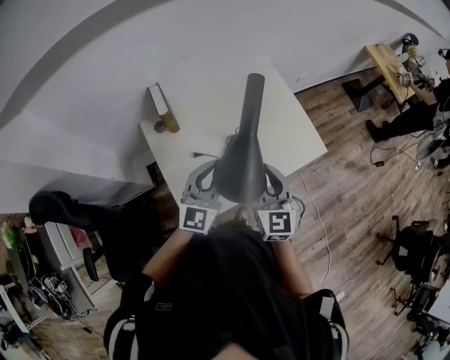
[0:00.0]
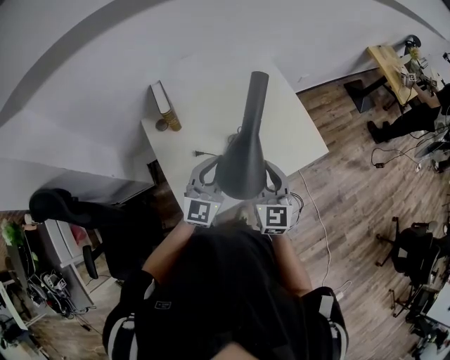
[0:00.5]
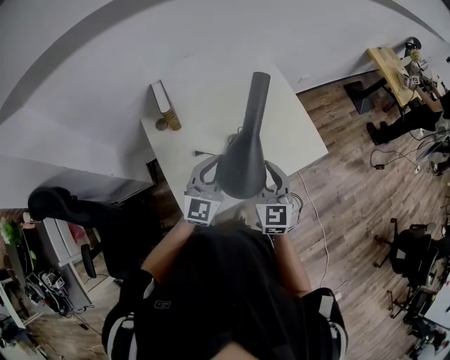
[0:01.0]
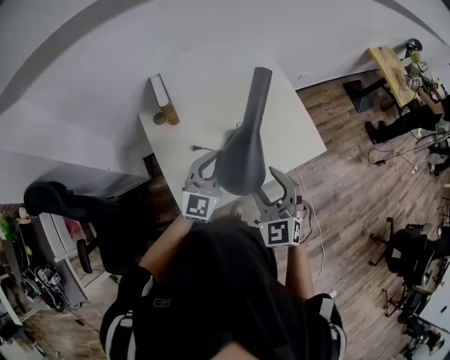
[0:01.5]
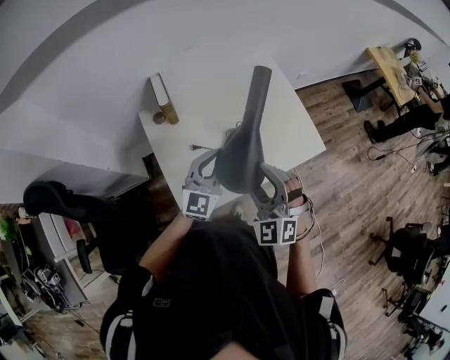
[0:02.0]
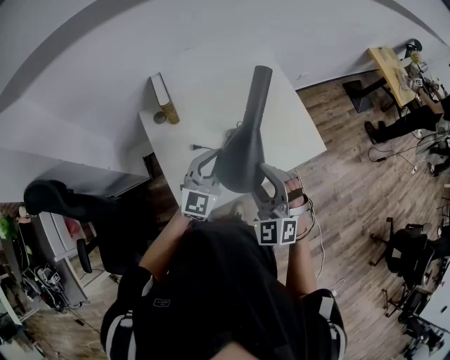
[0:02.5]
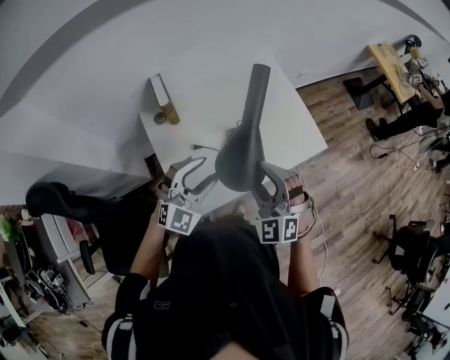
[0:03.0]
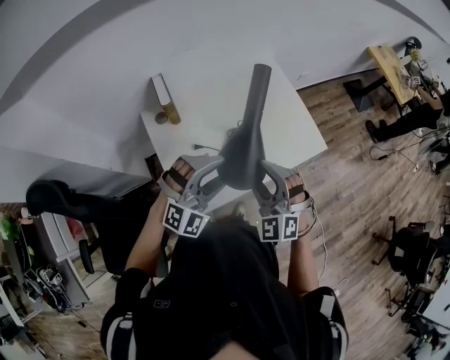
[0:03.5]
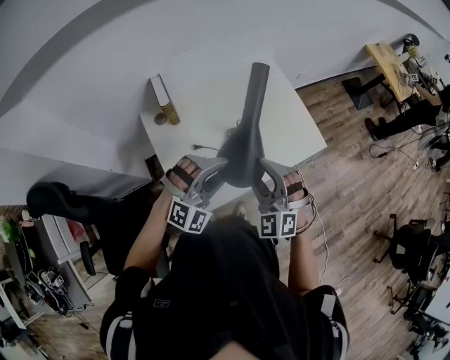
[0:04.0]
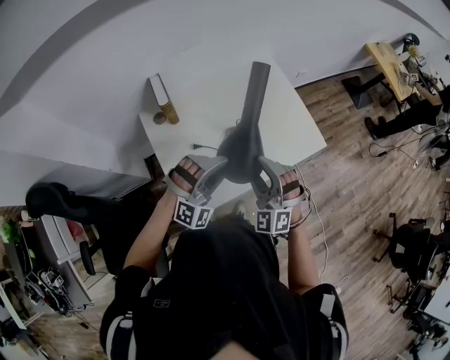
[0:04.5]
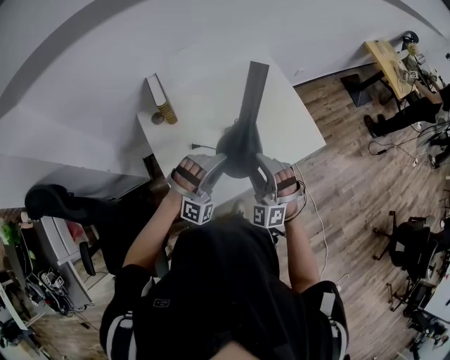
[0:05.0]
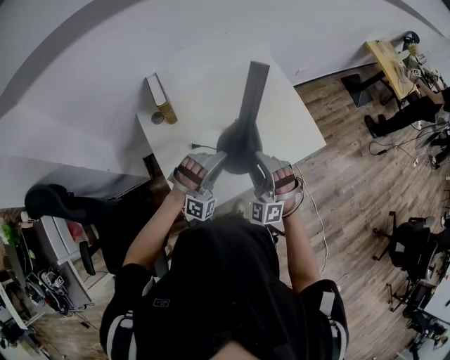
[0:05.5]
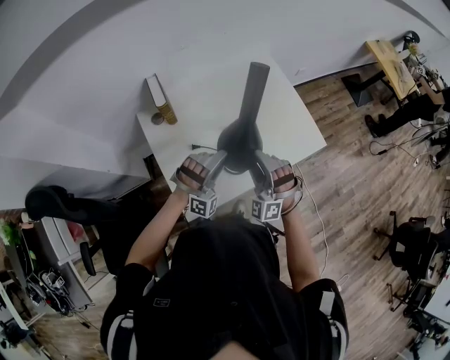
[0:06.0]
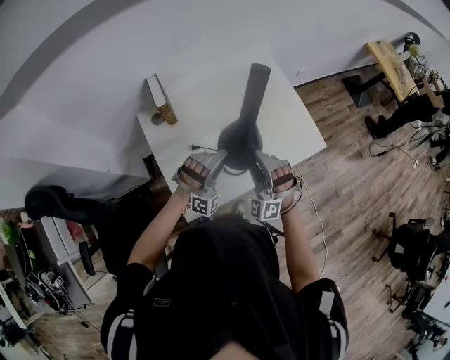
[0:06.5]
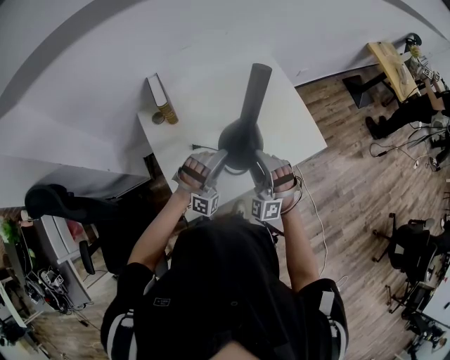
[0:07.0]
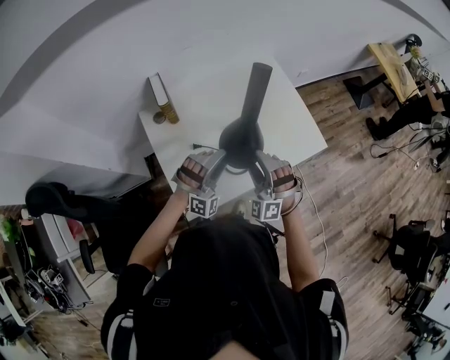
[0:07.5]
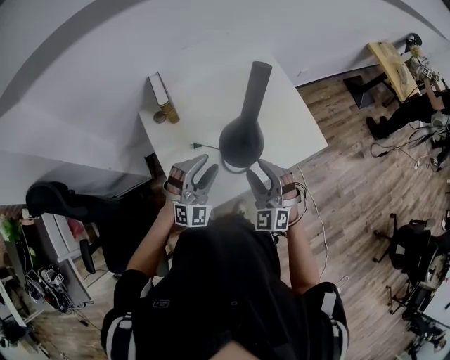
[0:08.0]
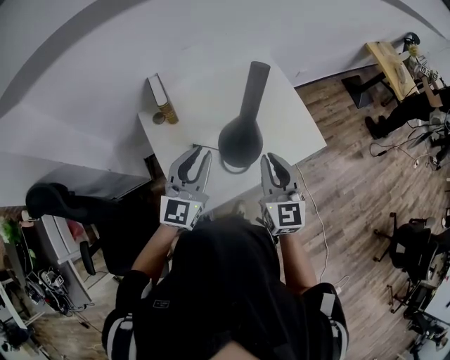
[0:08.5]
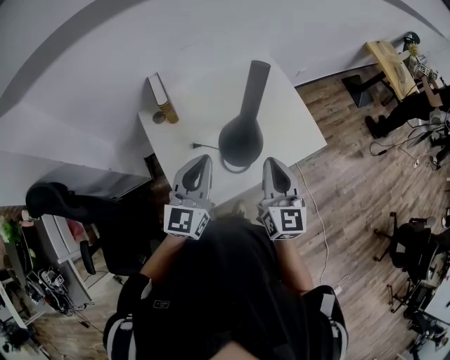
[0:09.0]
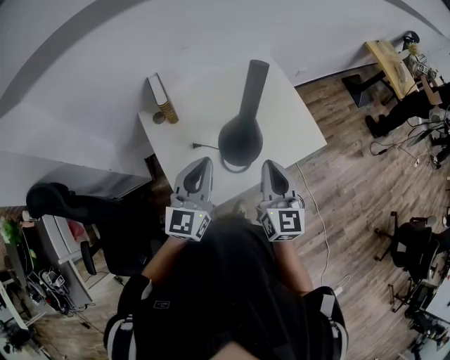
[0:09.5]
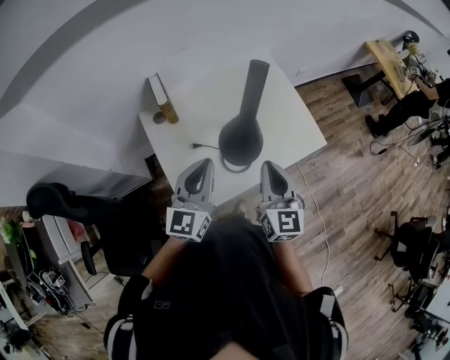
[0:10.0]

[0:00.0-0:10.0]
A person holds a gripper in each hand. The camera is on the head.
0:00.0 to 0:02.0: The right gripper moves approximately 5 cm, rotates around the line of its fingers by roughly 50 degrees, counterclockwise from behind, and opens up.
0:02.0 to 0:04.0: The left gripper heads backward, covering some 5 cm, twists about 60 degrees clockwise, seen from behind, and opens its fingers.
0:04.0 to 0:06.0: The left gripper shifts roughly 10 cm downward and forward, and rotates approximately 30 degrees. Meanwhile the right gripper is displaced downward by roughly 10 cm, and swivels about 20 degrees.
0:06.0 to 0:08.0: The right gripper rotates some 20 degrees; the left gripper moves approximately 5 cm, and rotates roughly 30 degrees.
0:08.0 to 0:10.0: Both grippers travel together upward, about 10 cm. The left gripper twists approximately 60 degrees counterclockwise, seen from behind, and closes. The right gripper rolls clockwise, seen from behind, by approximately 60 degrees, and closes up.

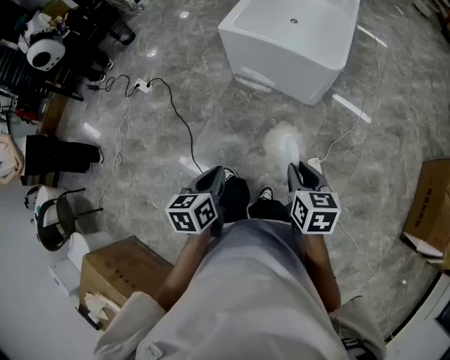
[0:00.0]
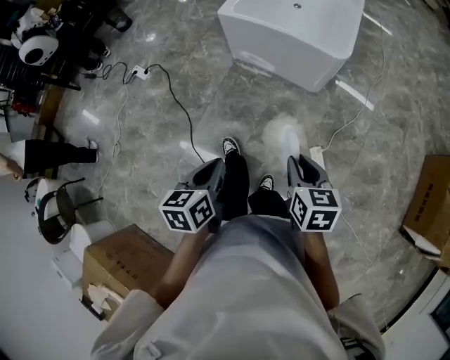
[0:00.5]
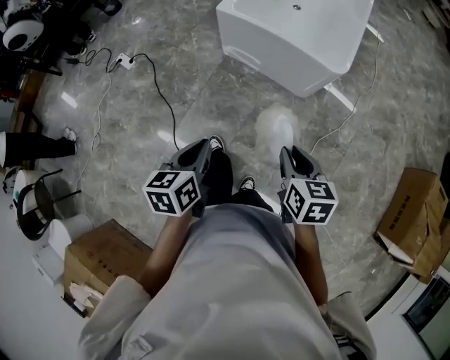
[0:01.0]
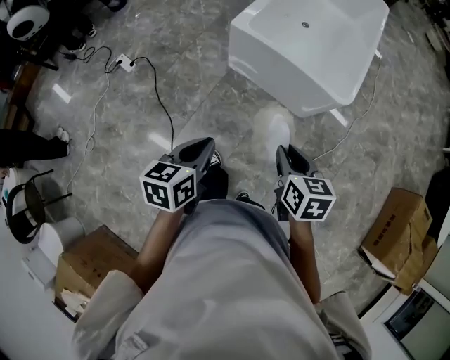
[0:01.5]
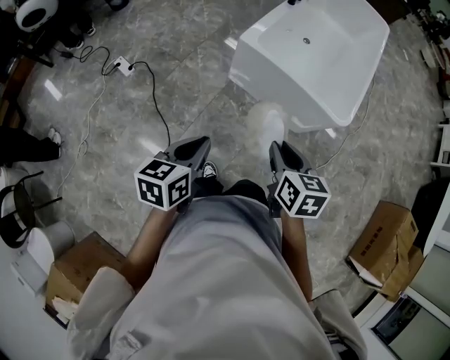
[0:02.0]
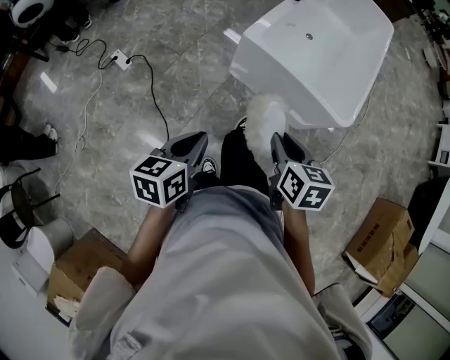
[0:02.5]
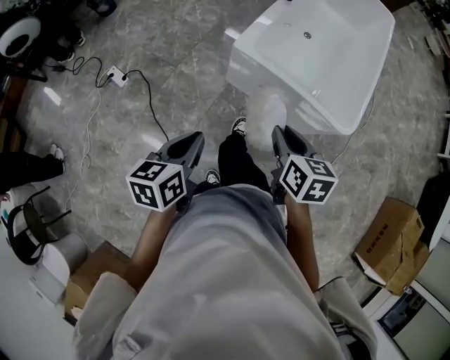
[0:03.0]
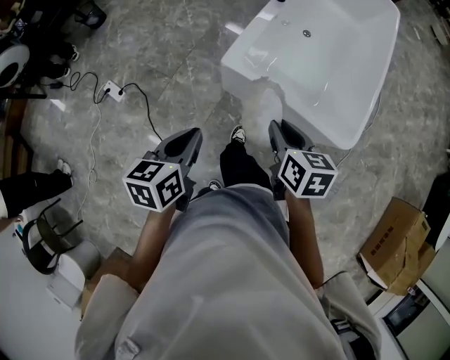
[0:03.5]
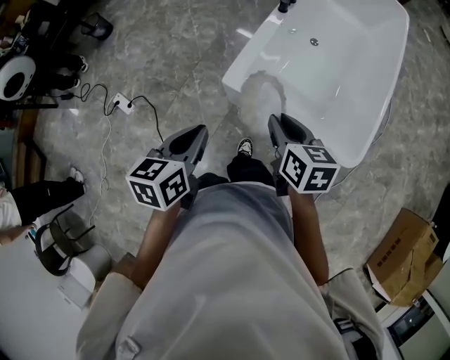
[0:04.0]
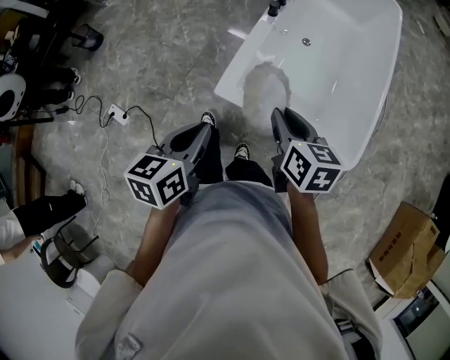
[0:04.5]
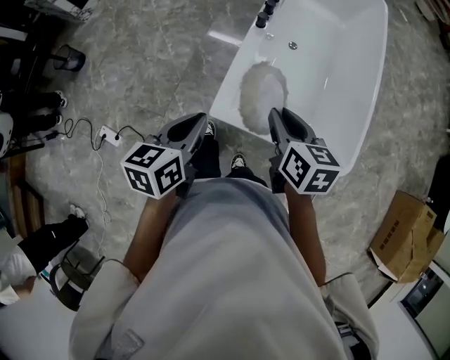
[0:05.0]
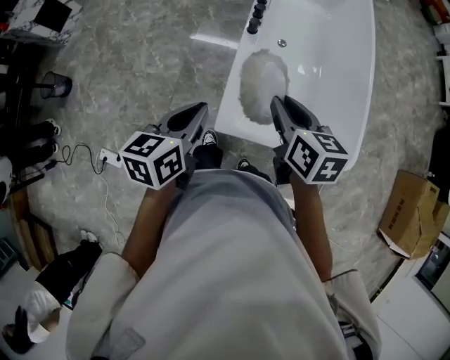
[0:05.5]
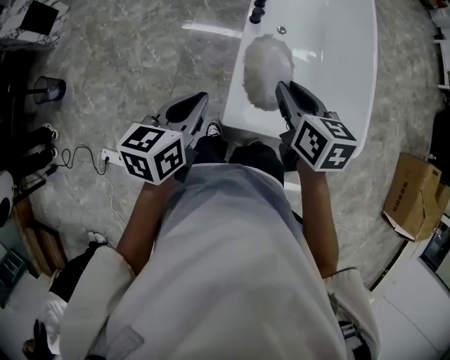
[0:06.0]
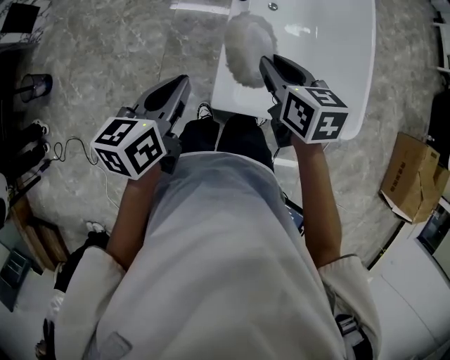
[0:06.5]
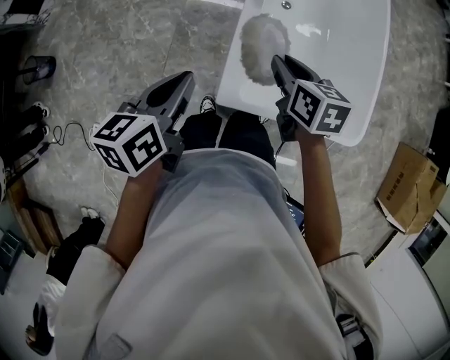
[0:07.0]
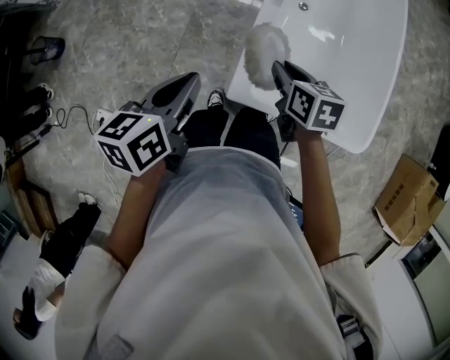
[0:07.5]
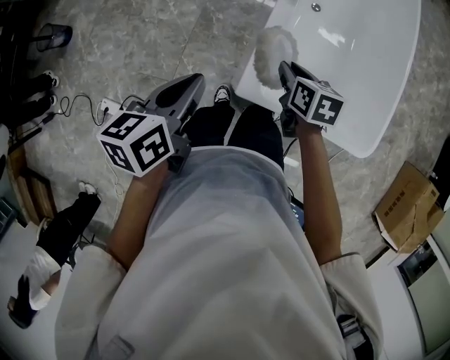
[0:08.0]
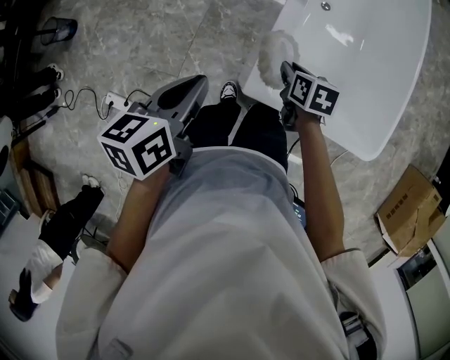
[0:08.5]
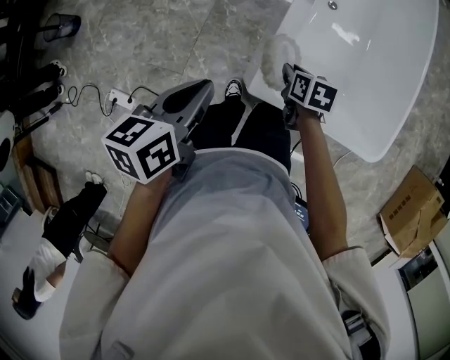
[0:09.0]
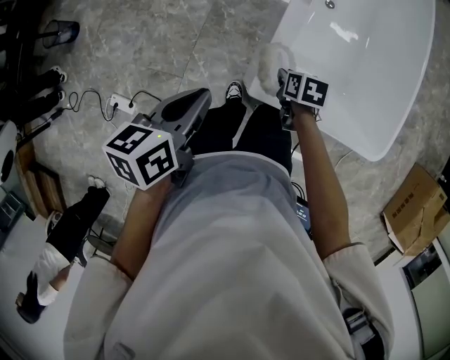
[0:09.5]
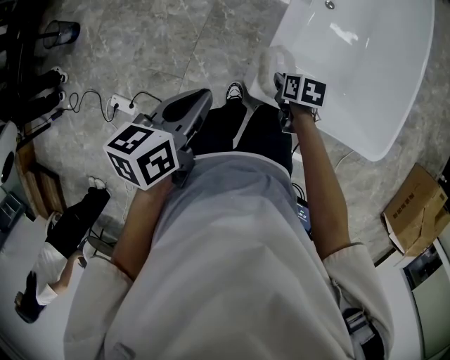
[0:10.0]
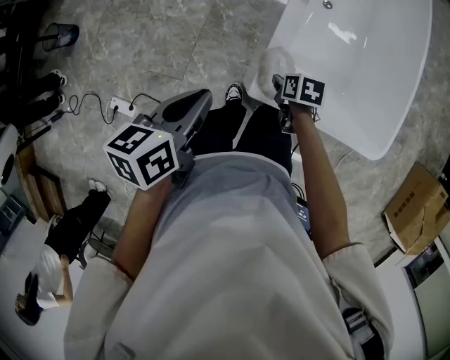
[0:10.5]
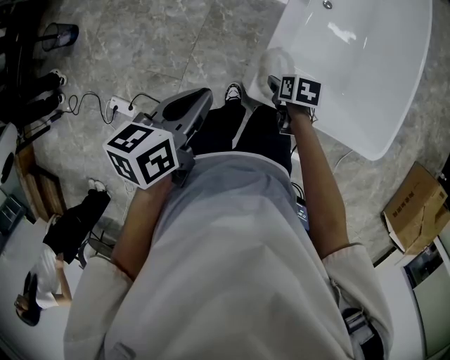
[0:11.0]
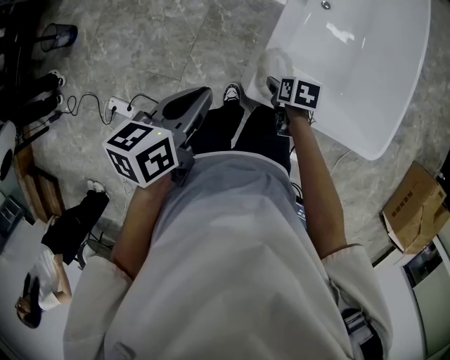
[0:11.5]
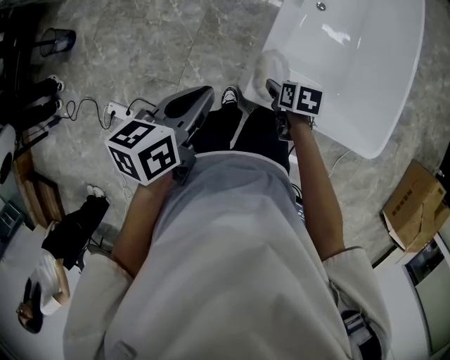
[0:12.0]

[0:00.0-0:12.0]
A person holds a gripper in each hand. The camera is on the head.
0:00.0 to 0:02.0: Both grippers move forward and to the left, some 35 cm.
0:02.0 to 0:04.0: The two grippers go some 40 cm forward.
0:04.0 to 0:06.0: The right gripper changes place by about 25 cm, and changes its angle by about 20 degrees, while the left gripper changes place by some 30 cm, and rotates approximately 30 degrees.
0:06.0 to 0:08.0: The right gripper moves downward, some 15 cm. The left gripper shifts by approximately 5 cm.
0:08.0 to 0:10.0: The right gripper goes approximately 10 cm downward.
0:10.0 to 0:12.0: The right gripper opens up.

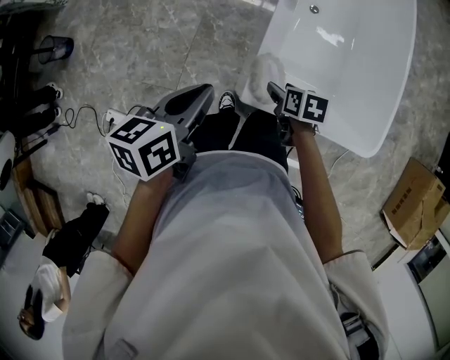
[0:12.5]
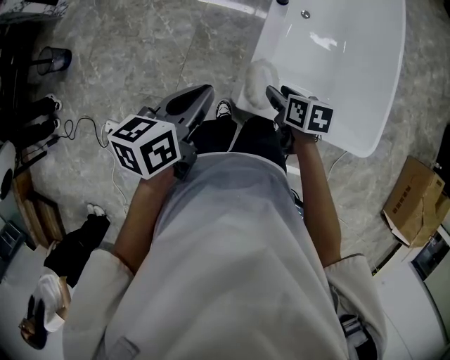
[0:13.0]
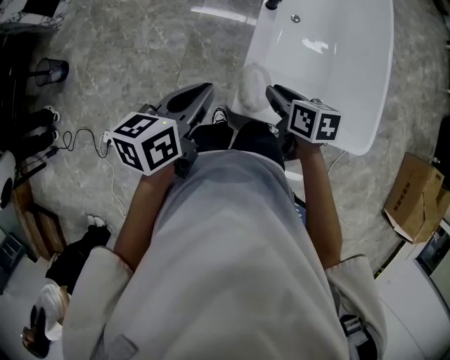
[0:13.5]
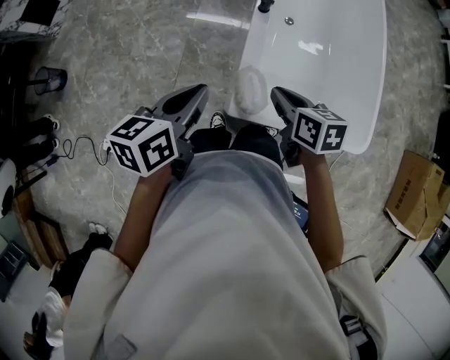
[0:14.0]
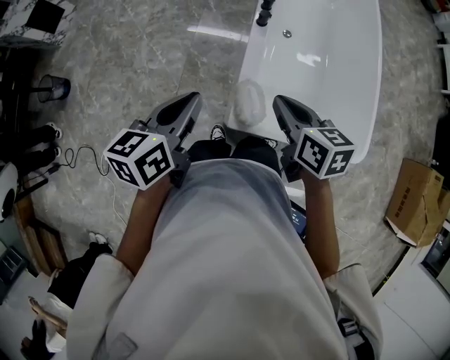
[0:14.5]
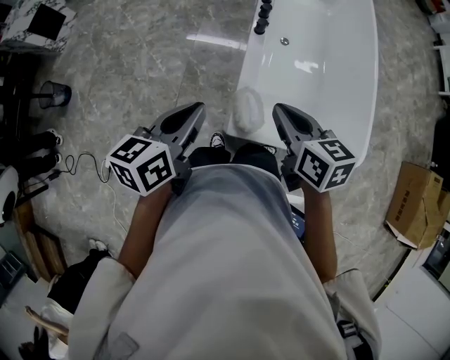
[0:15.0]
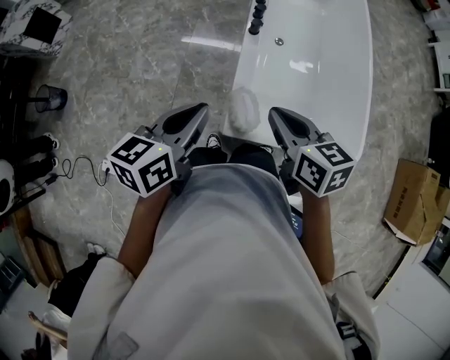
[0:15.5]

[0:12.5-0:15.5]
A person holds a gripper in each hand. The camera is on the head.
0:12.5 to 0:14.0: The right gripper goes some 15 cm upward, swivels some 20 degrees, and closes up.
0:14.0 to 0:15.5: The right gripper goes approximately 10 cm upward.

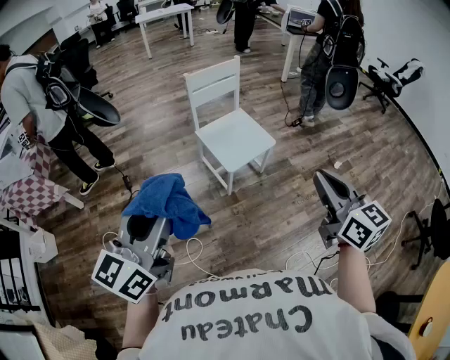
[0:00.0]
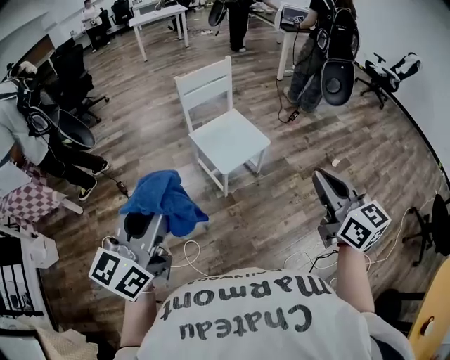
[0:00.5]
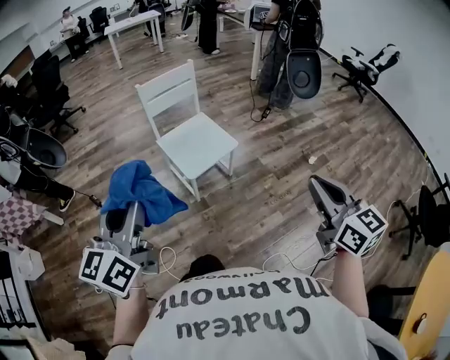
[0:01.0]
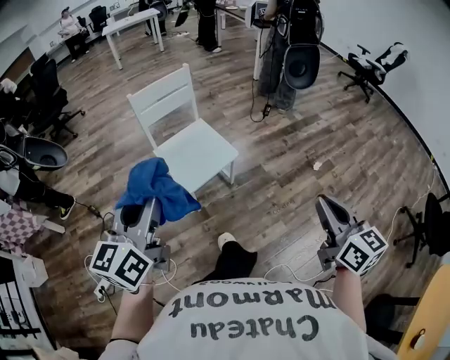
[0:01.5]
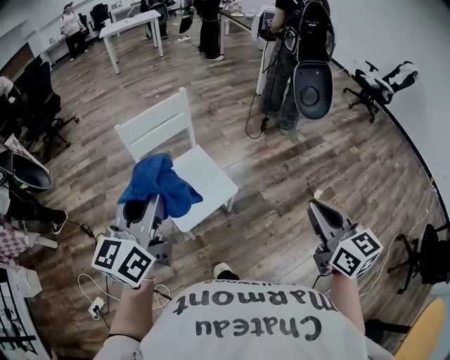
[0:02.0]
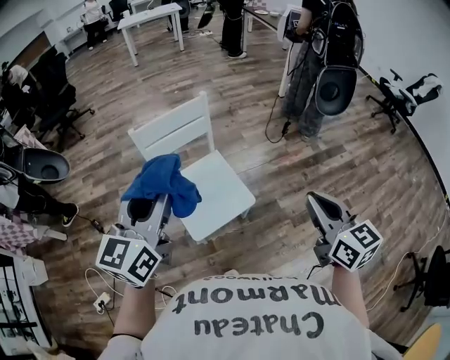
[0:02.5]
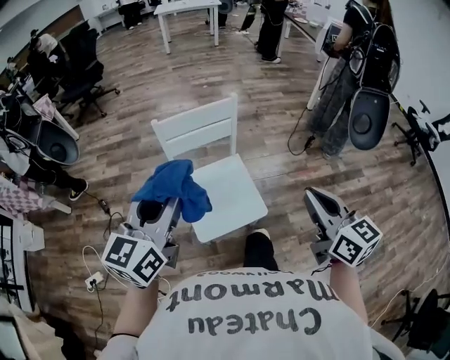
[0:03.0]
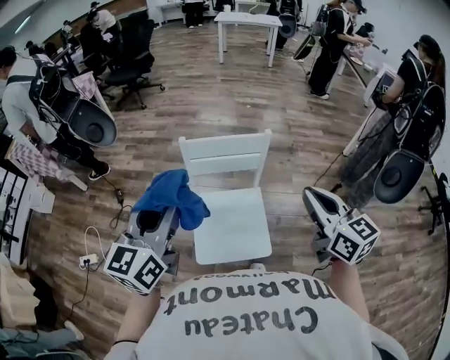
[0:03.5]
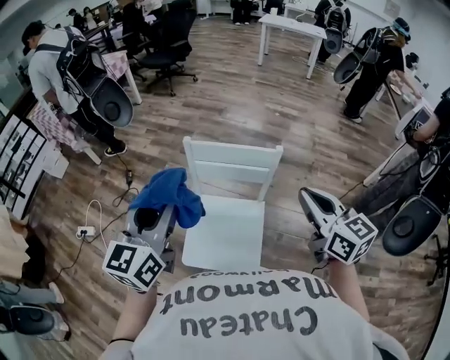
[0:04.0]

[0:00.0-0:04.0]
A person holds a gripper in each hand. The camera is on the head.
0:00.0 to 0:02.0: Both grippers travel together forward and to the right, some 40 cm.
0:02.0 to 0:04.0: The left gripper shifts by roughly 20 cm, and rotates roughly 50 degrees, while the right gripper changes place by roughly 50 cm, and turns by approximately 50 degrees.
